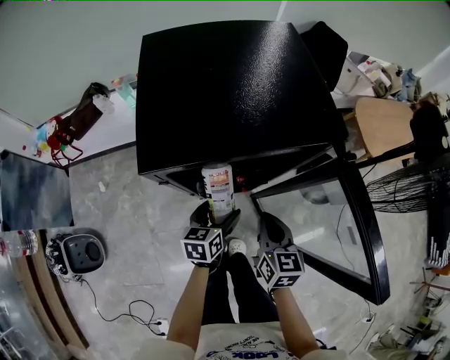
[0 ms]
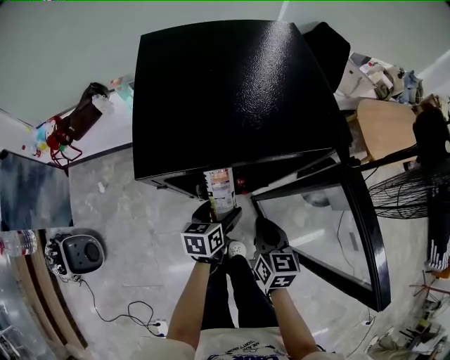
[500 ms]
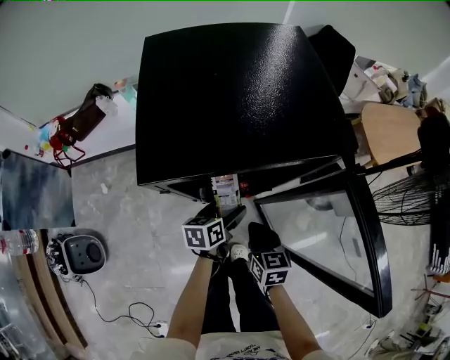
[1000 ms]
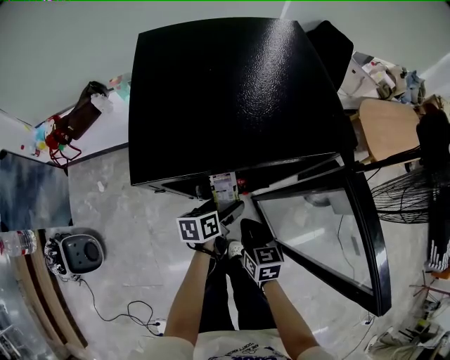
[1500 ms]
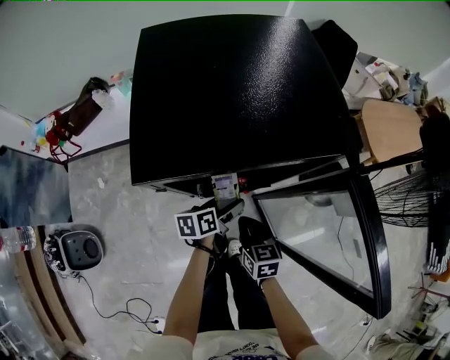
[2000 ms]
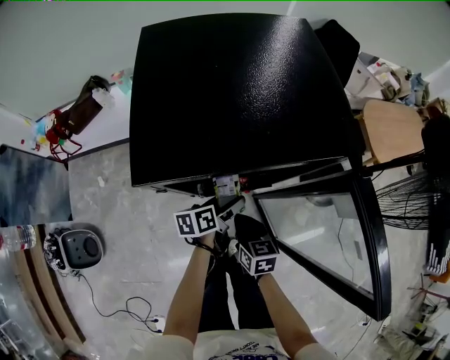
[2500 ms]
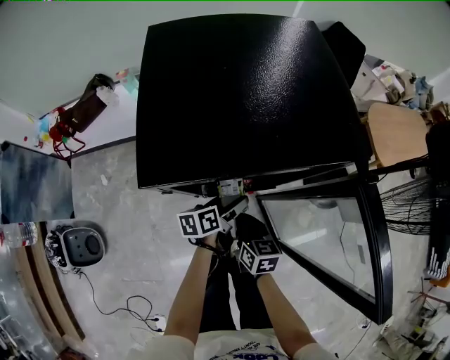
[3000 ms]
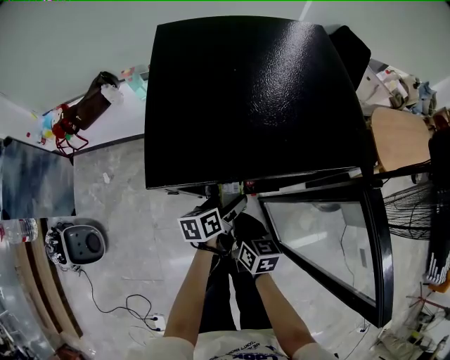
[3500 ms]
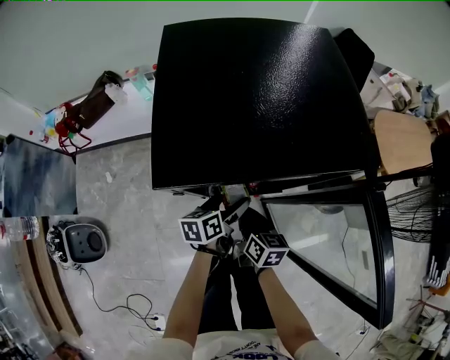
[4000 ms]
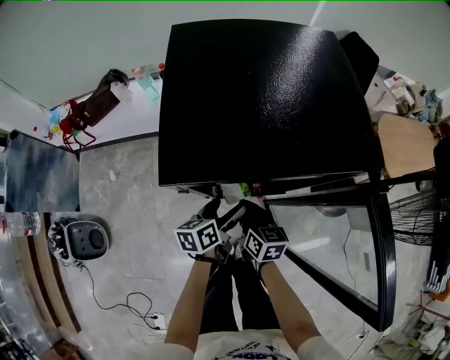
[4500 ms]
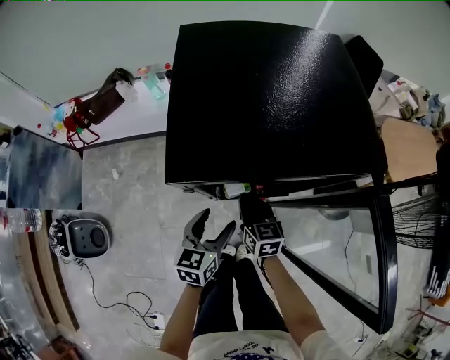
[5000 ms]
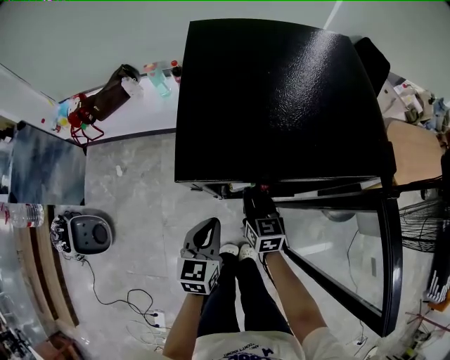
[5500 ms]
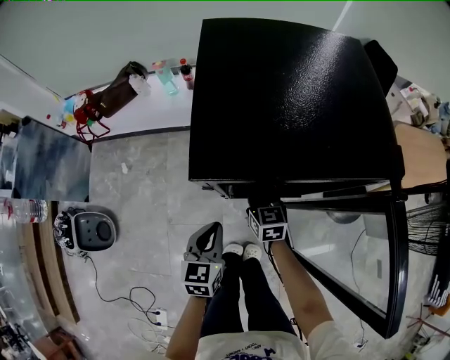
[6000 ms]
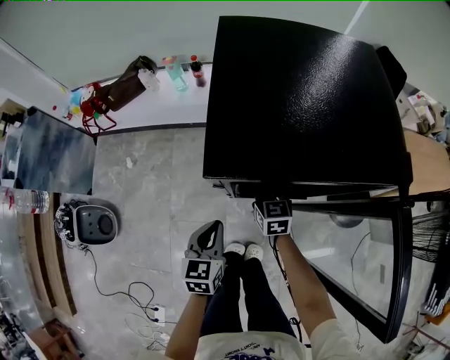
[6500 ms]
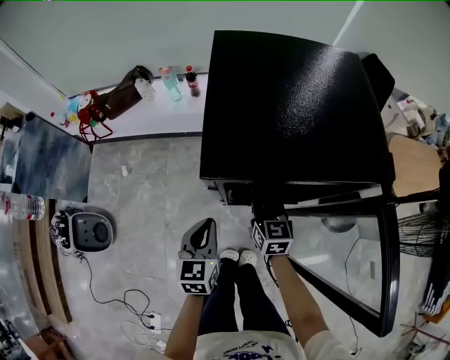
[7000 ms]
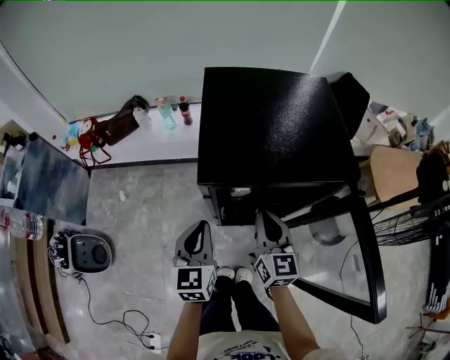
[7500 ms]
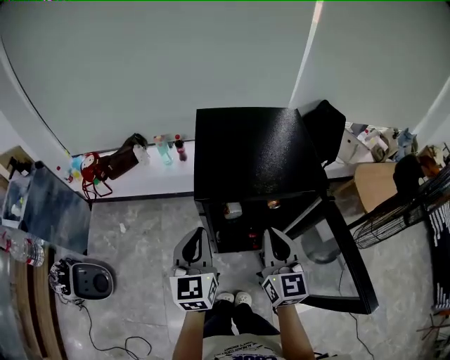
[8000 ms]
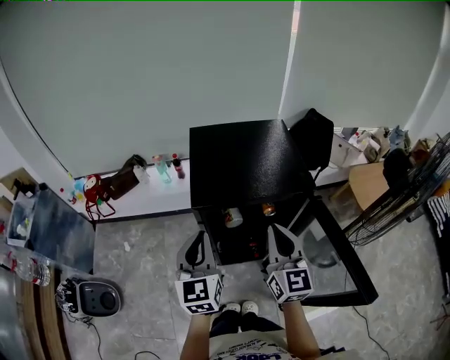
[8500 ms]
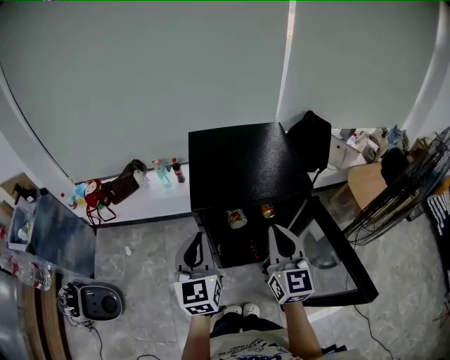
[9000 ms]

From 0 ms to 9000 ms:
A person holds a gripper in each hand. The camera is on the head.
From 0 ms to 2000 ms: The right gripper heads downward and to the left, covering roughly 10 cm. The left gripper moves roughly 5 cm, and rotates some 30 degrees.
From 2000 ms to 4500 ms: The right gripper travels forward and to the left by about 10 cm. The left gripper goes roughly 5 cm to the left.
From 4500 ms to 7000 ms: The right gripper heads forward, covering approximately 5 cm, and rotates about 20 degrees. Meanwhile the left gripper is displaced to the left, upward and backward by about 15 cm, swivels approximately 40 degrees, and closes its fingers.
From 7000 ms to 9000 ms: The right gripper is displaced upward and backward by some 35 cm, and turns by approximately 30 degrees. Meanwhile the left gripper goes some 30 cm upward, and turns by some 30 degrees.

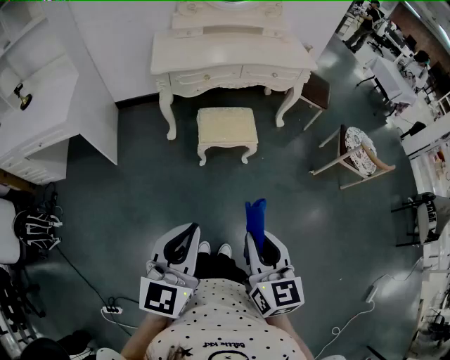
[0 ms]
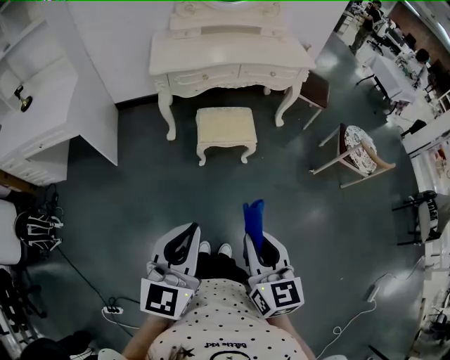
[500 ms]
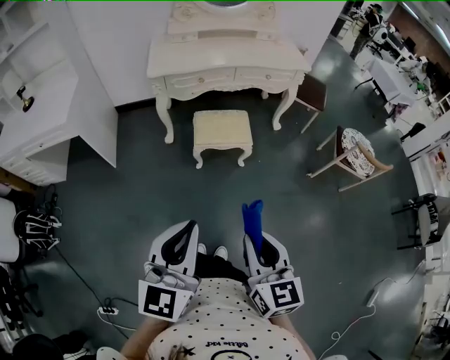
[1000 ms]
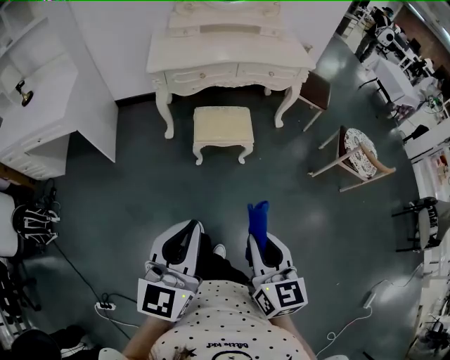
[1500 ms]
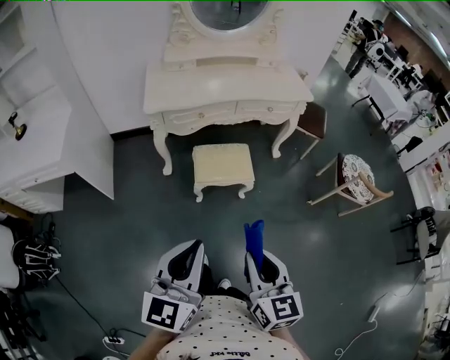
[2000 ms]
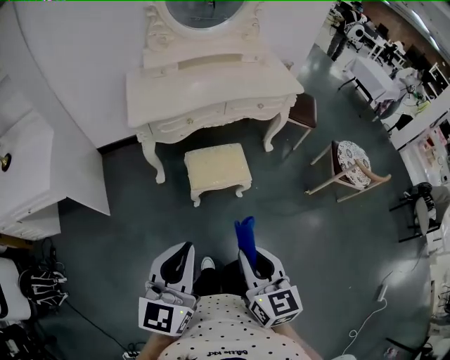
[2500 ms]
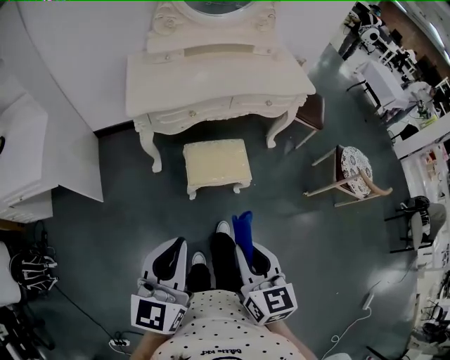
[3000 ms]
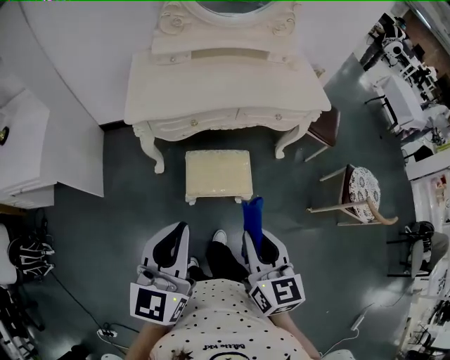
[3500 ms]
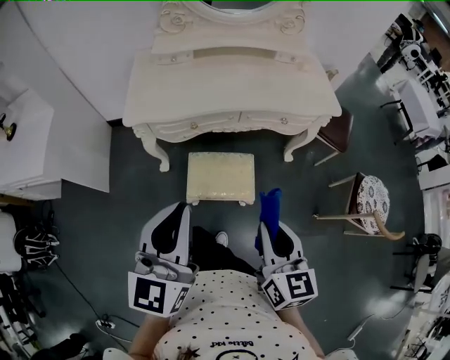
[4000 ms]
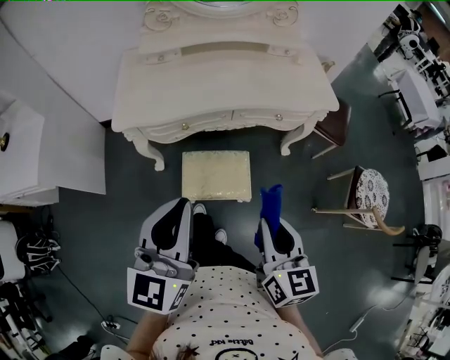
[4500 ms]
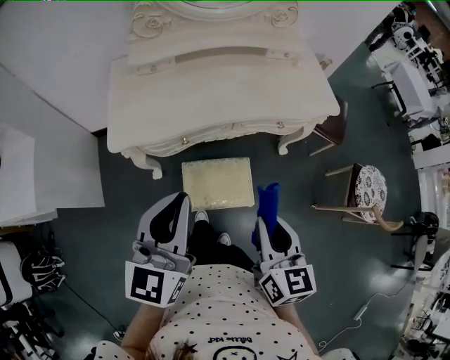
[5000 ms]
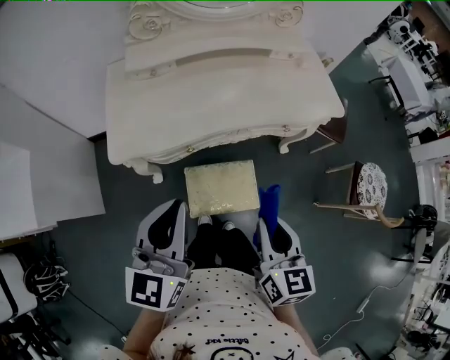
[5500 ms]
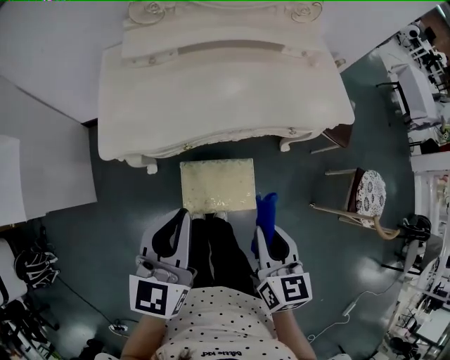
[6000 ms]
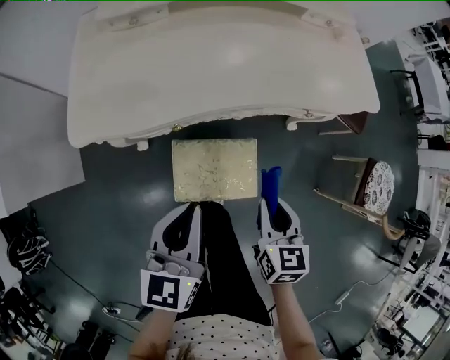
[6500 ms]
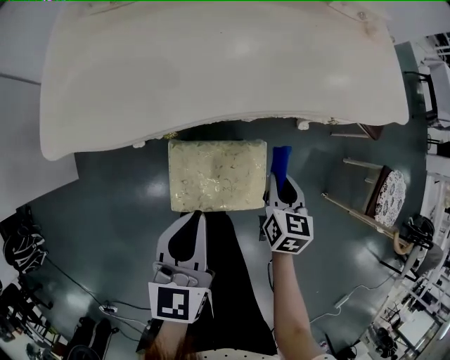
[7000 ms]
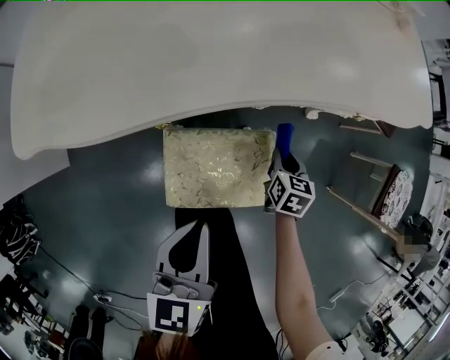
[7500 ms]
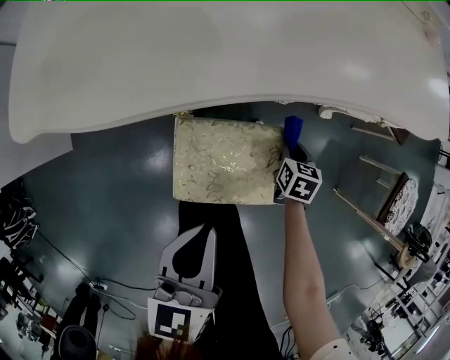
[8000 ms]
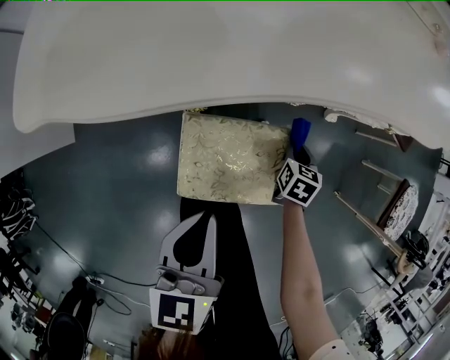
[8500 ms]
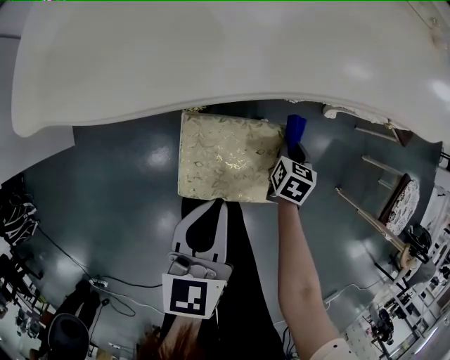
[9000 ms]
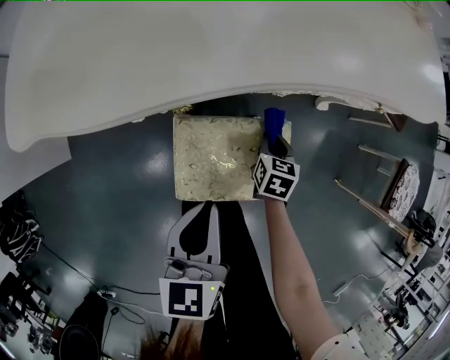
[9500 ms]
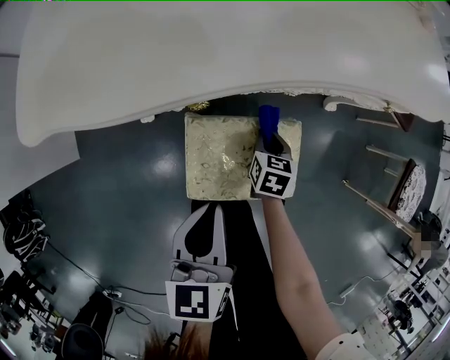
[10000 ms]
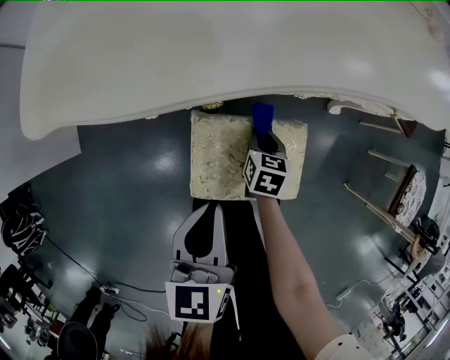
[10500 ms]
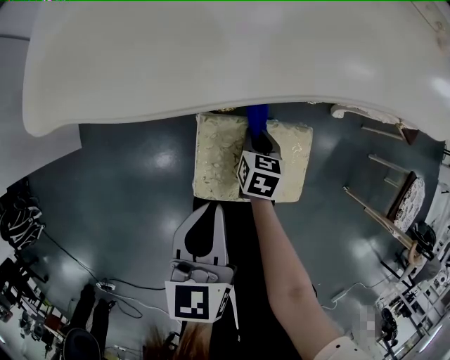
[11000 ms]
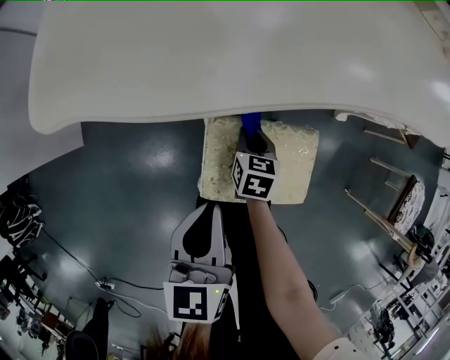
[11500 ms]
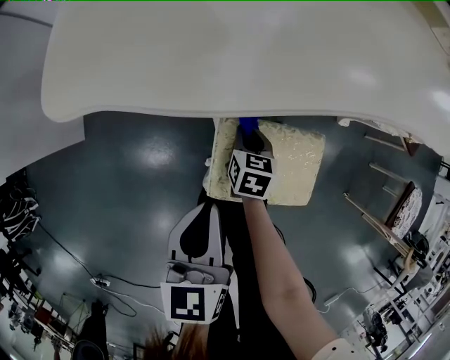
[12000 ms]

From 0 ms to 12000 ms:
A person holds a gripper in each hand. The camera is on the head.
From 0 ms to 2000 ms: Both grippers move forward, about 10 cm.
From 2000 ms to 4000 ms: Both grippers move forward, roughly 30 cm.
From 4000 ms to 6000 ms: The grippers both shift forward and downward by some 20 cm.
From 6000 ms to 8000 ms: The right gripper goes roughly 50 cm downward, and changes its angle by approximately 30 degrees; the left gripper travels downward by roughly 30 cm, and turns by roughly 20 degrees.
From 8000 ms to 10000 ms: The right gripper moves to the left, approximately 10 cm.
From 10000 ms to 12000 ms: The left gripper moves to the left, about 10 cm. Meanwhile the right gripper travels to the left by approximately 15 cm.

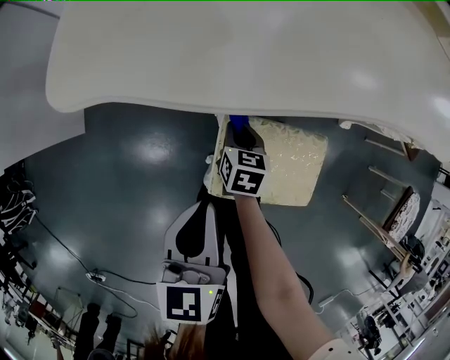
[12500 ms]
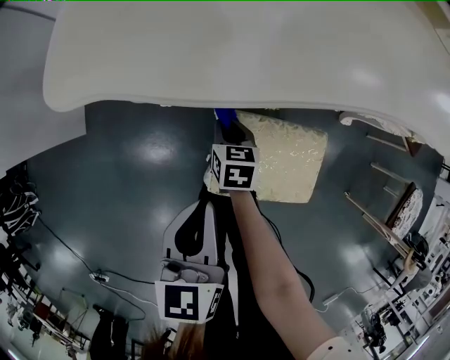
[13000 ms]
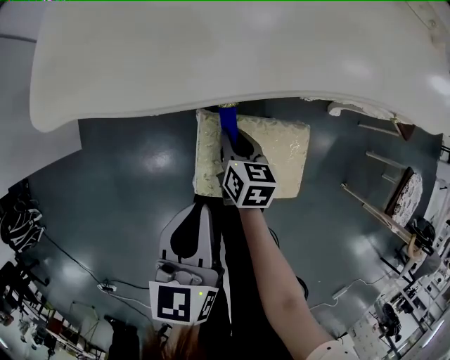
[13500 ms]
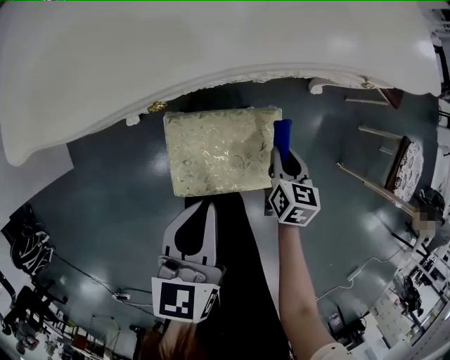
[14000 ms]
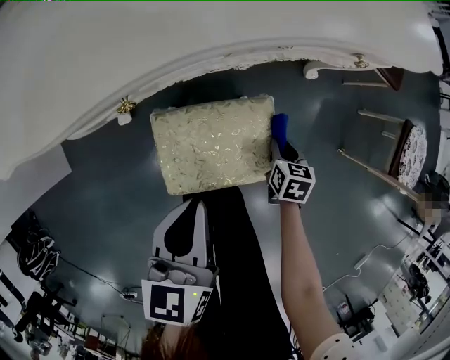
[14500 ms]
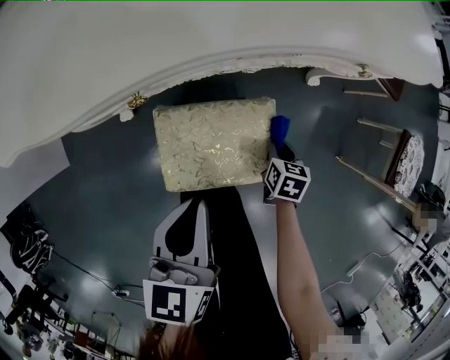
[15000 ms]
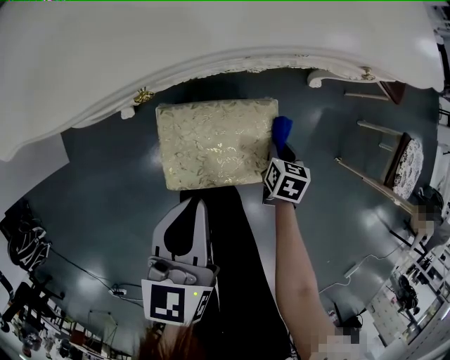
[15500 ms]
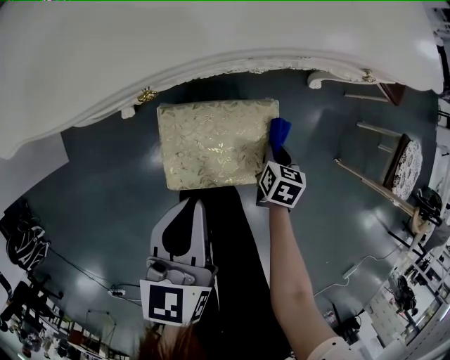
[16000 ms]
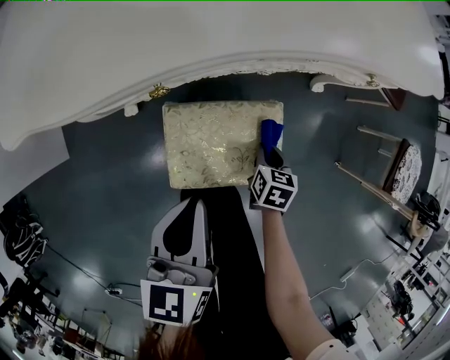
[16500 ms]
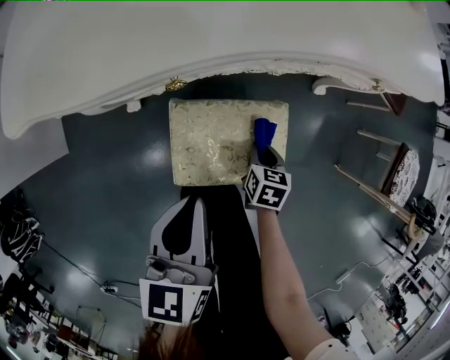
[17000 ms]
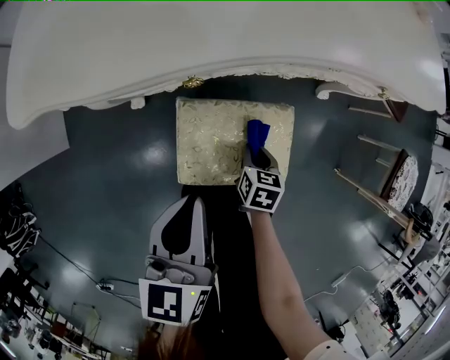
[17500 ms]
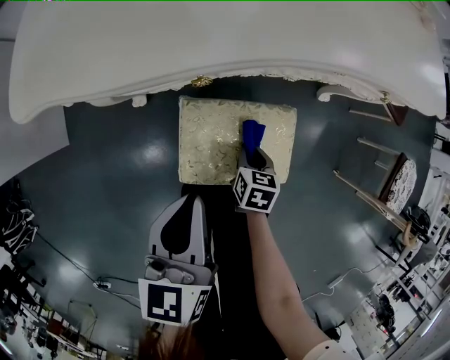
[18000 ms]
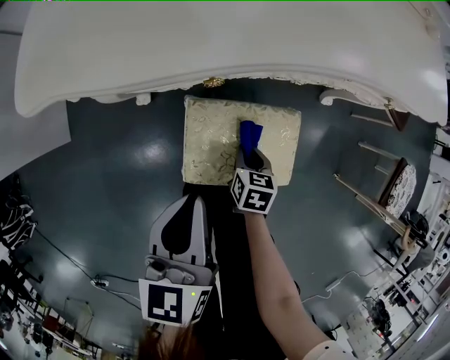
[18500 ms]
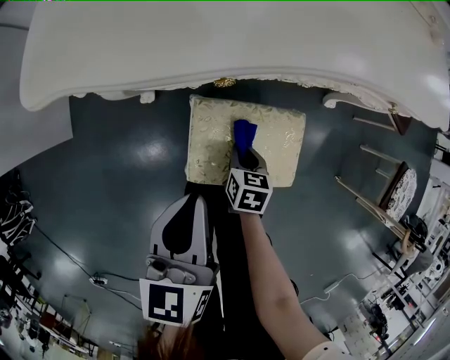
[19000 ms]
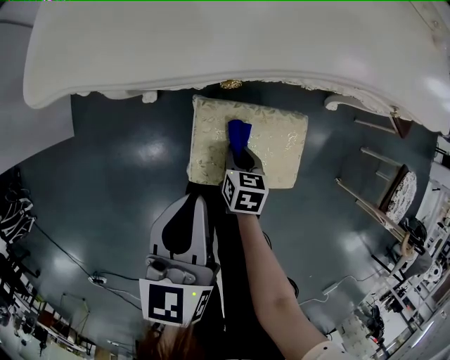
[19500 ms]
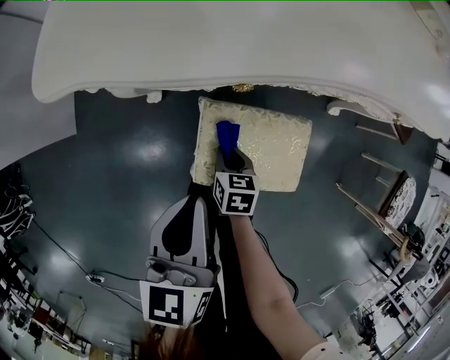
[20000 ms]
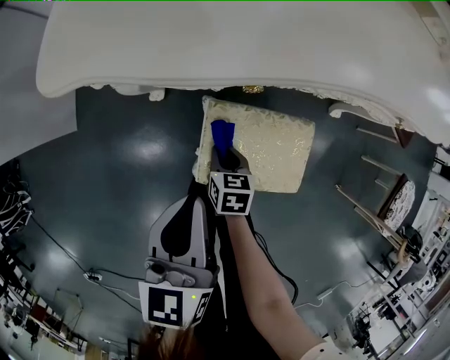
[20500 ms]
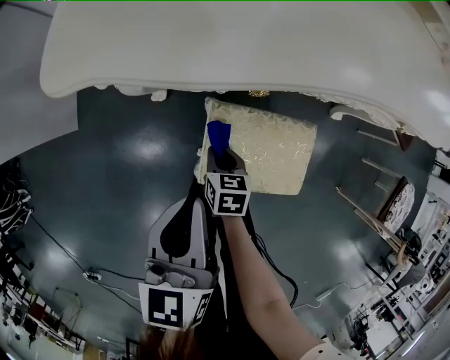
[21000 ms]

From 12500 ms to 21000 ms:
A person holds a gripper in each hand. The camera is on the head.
From 12500 ms to 14500 ms: The left gripper ends up roughly 15 cm from where it was, and turns by some 20 degrees. The right gripper goes upward and returns, some 5 cm each way.
From 14500 ms to 16500 ms: The right gripper shifts some 5 cm to the left.
From 16500 ms to 19000 ms: The left gripper travels to the left by some 5 cm; the right gripper goes approximately 15 cm to the left.
From 19000 ms to 21000 ms: The right gripper is displaced to the left by roughly 10 cm.
